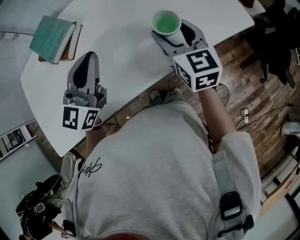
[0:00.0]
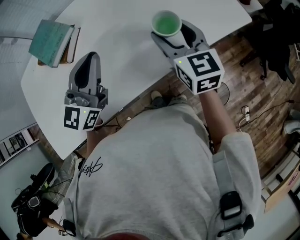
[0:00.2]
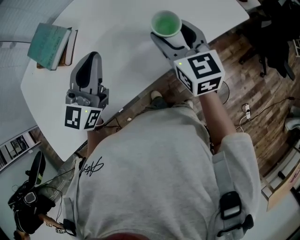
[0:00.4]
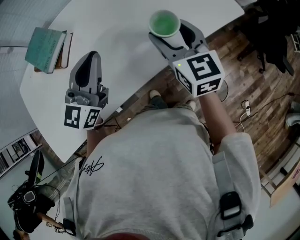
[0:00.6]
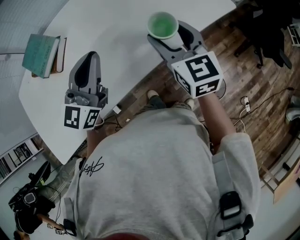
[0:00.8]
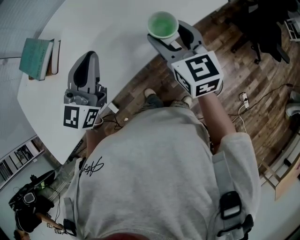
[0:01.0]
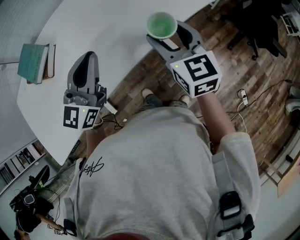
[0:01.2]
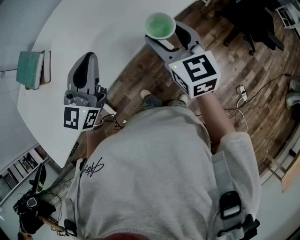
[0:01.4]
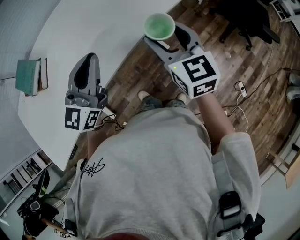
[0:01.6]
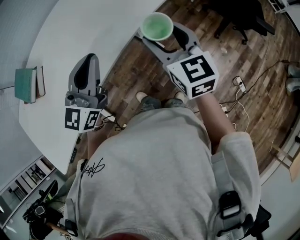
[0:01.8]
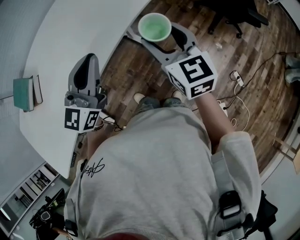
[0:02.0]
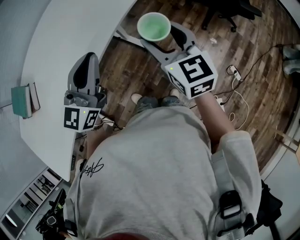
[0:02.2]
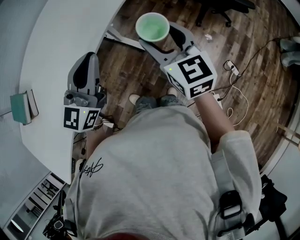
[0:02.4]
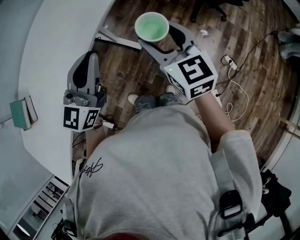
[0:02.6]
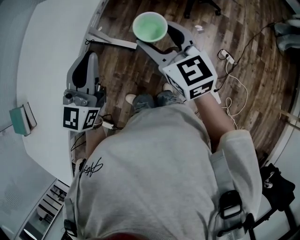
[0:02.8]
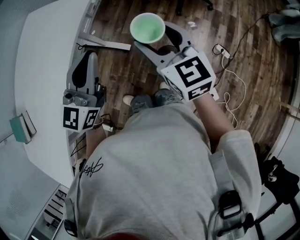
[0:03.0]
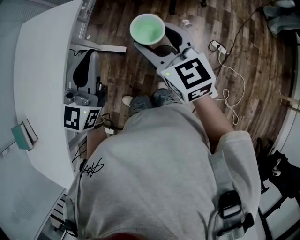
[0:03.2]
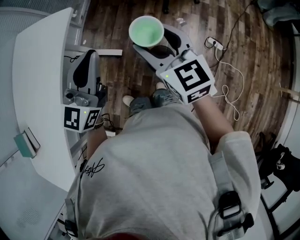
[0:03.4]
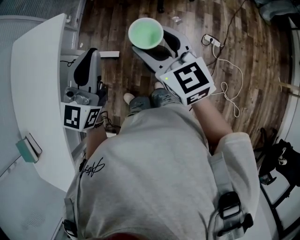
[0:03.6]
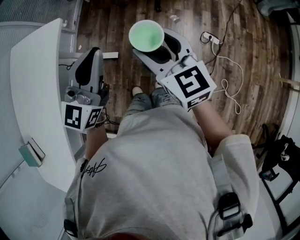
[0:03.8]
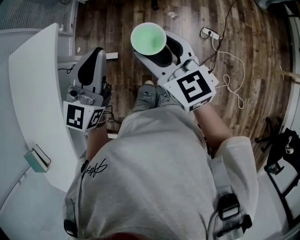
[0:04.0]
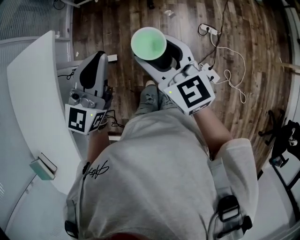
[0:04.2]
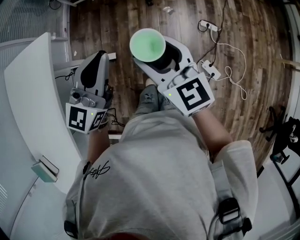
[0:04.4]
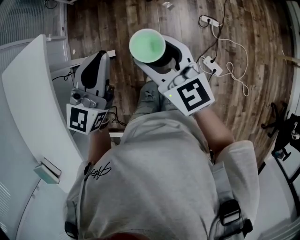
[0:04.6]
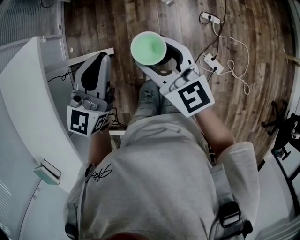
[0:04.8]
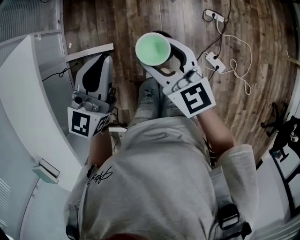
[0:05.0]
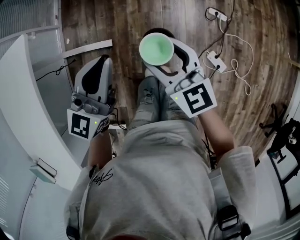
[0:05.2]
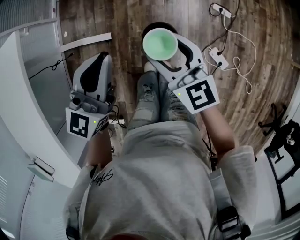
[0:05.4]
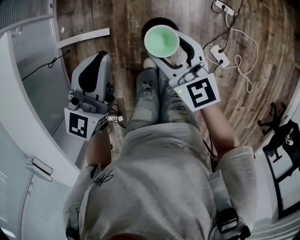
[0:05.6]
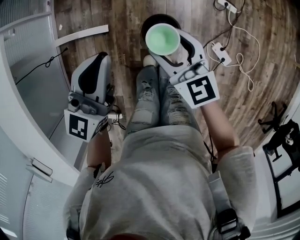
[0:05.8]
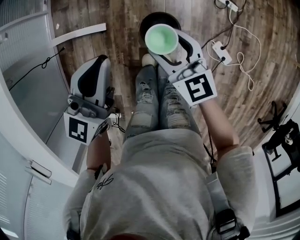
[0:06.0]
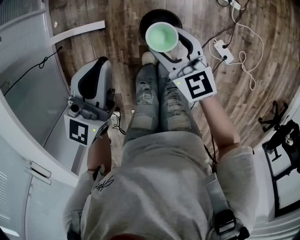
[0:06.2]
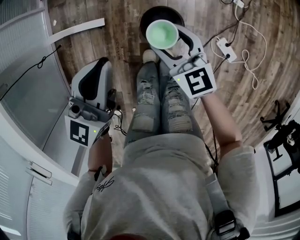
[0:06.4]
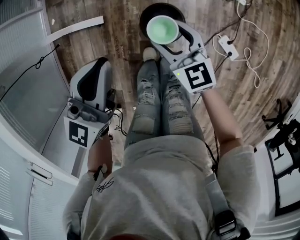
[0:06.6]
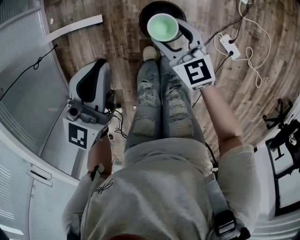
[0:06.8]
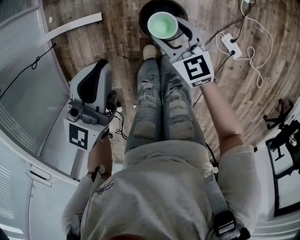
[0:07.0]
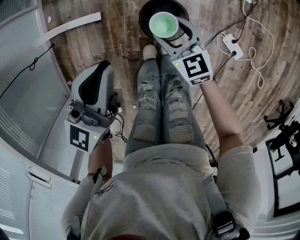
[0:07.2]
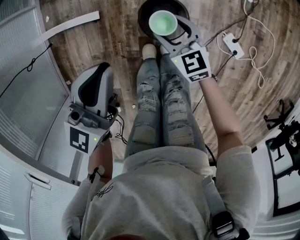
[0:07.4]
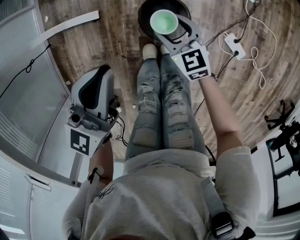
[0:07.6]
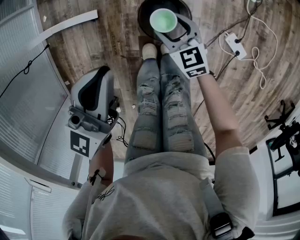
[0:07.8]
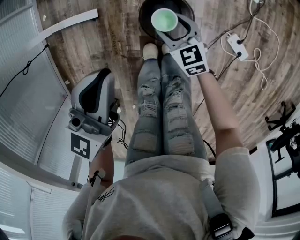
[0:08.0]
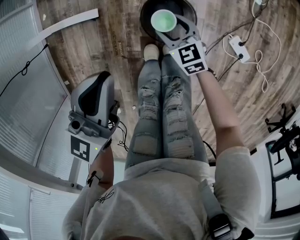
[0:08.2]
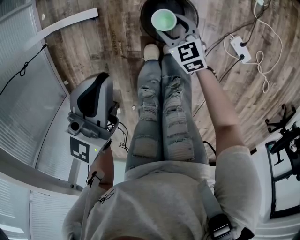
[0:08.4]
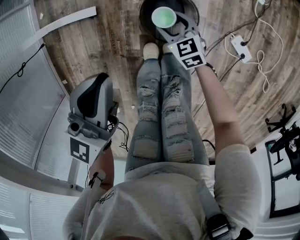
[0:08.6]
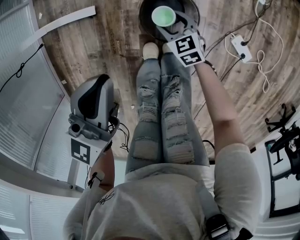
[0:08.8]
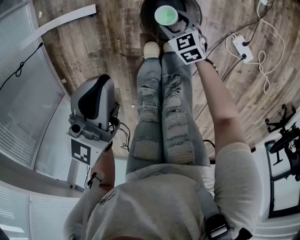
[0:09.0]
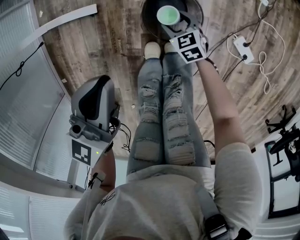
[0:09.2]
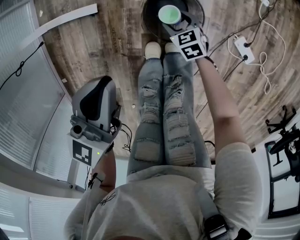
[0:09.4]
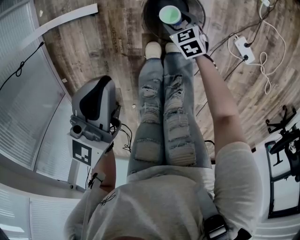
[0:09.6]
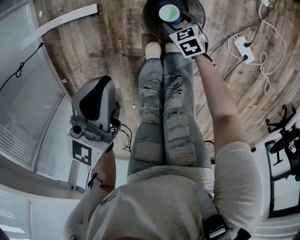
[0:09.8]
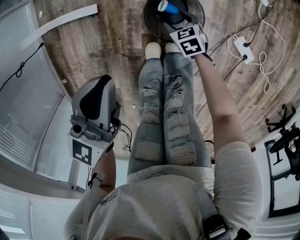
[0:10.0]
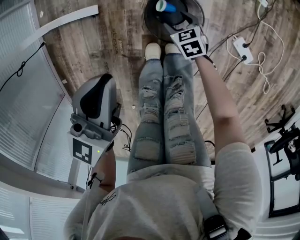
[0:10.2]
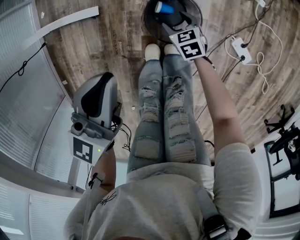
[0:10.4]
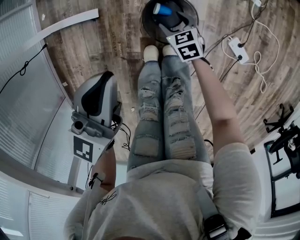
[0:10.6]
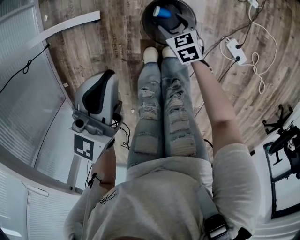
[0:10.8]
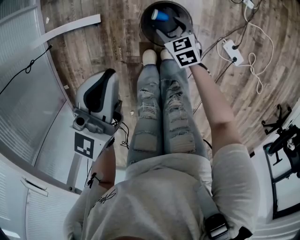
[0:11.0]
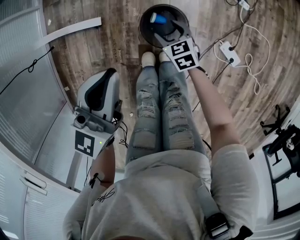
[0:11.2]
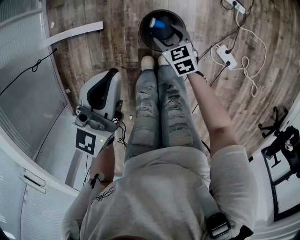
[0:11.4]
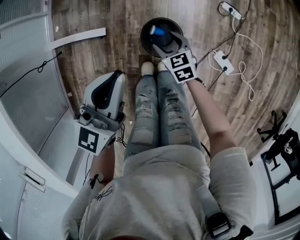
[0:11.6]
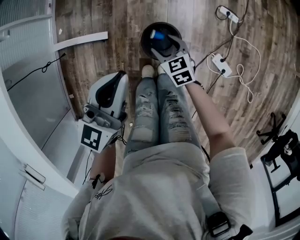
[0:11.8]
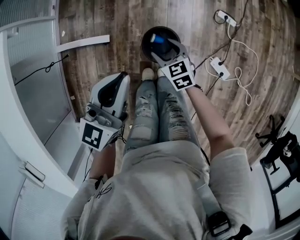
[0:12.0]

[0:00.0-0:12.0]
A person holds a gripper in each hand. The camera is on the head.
0.0 to 1.6 s: Both grippers travel together to the right, roughly 20 cm.
1.6 to 3.0 s: The grippers both shift to the right by about 25 cm. The left gripper changes its angle by about 20 degrees.
3.0 to 4.4 s: The right gripper heads to the right and downward, covering approximately 10 cm. The left gripper goes roughly 15 cm to the right, forward and downward, and swivels approximately 30 degrees.
4.4 to 6.0 s: The right gripper goes approximately 25 cm downward. The left gripper moves downward, roughly 20 cm.
6.0 to 7.6 s: The right gripper is displaced downward by roughly 25 cm, while the left gripper goes approximately 10 cm downward.
7.6 to 9.0 s: The left gripper goes some 5 cm downward. Meanwhile the right gripper shifts roughly 15 cm downward.
9.0 to 10.4 s: The grippers make only small movements.
10.4 to 12.0 s: The left gripper moves upward, some 15 cm, while the right gripper heads upward, covering some 25 cm.

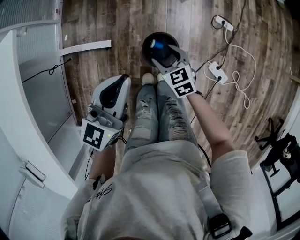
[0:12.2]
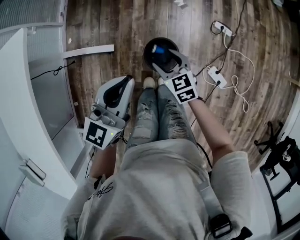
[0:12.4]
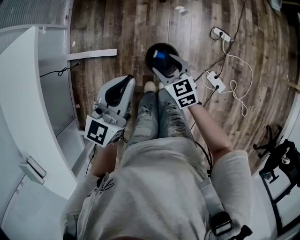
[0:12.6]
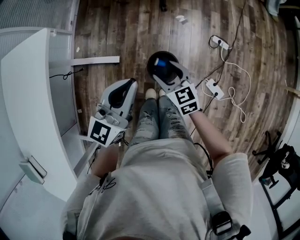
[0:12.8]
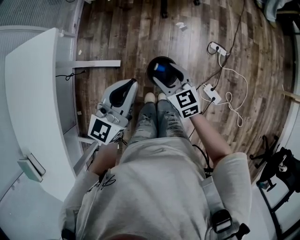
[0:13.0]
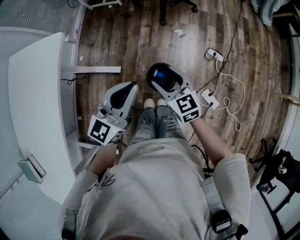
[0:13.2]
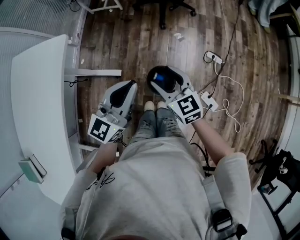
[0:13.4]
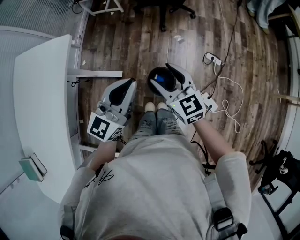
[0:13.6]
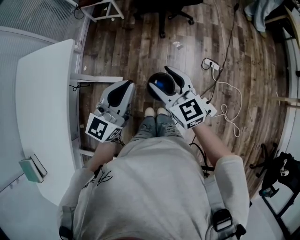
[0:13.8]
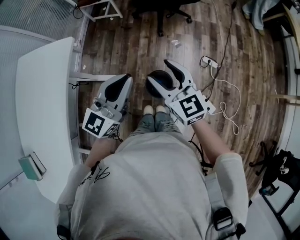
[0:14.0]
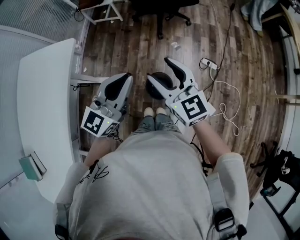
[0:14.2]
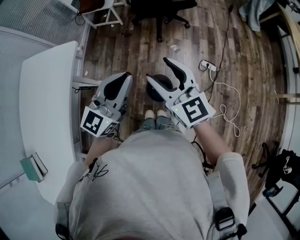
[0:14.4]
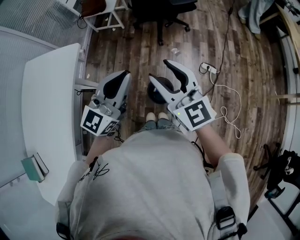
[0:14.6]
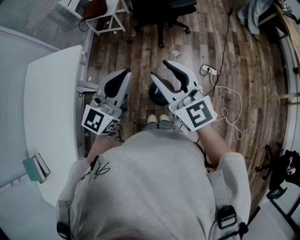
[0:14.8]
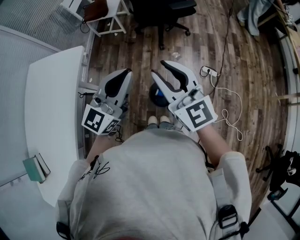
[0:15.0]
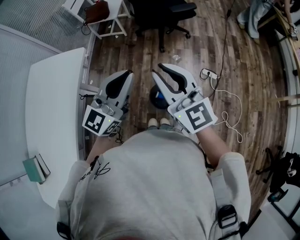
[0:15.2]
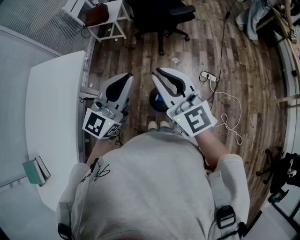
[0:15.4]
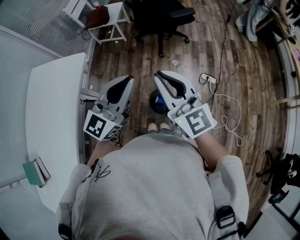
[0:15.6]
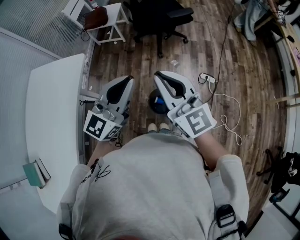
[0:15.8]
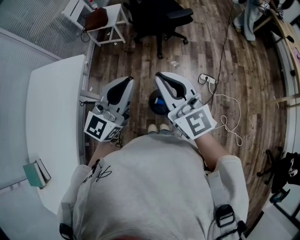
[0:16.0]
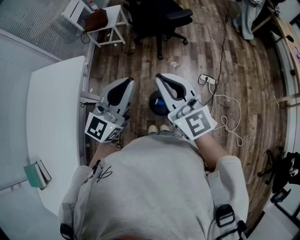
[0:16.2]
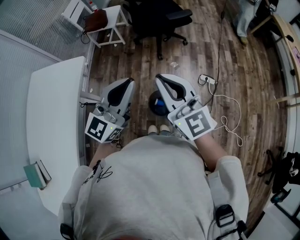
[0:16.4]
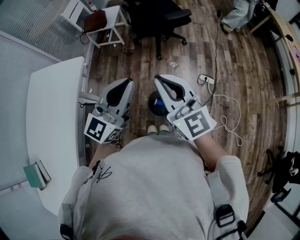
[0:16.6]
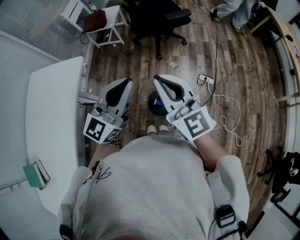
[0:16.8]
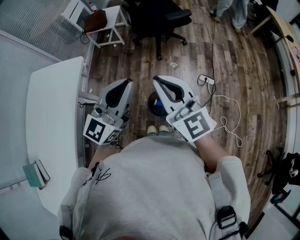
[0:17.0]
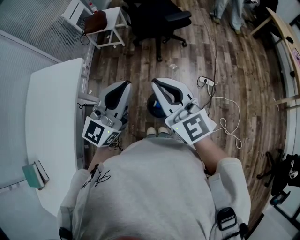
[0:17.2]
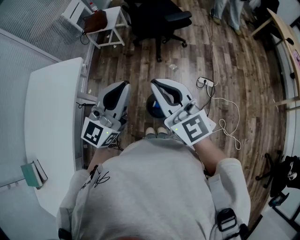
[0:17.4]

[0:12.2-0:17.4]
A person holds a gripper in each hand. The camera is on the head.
12.2 to 14.0 s: The right gripper shifts some 35 cm upward, and angles its fingers upward, by roughly 30 degrees, while the left gripper travels upward by some 20 cm.
14.0 to 15.6 s: The right gripper heads upward, covering some 15 cm, and closes, while the left gripper is displaced upward by approximately 10 cm.
15.6 to 17.4 s: There are only small adjustments of the grippers.

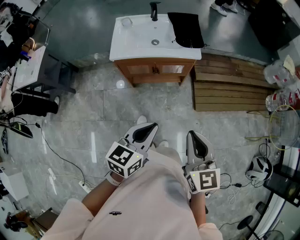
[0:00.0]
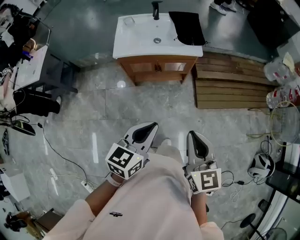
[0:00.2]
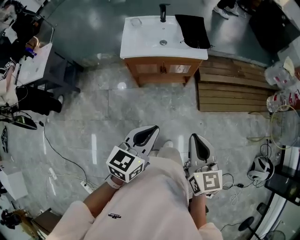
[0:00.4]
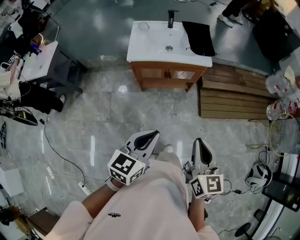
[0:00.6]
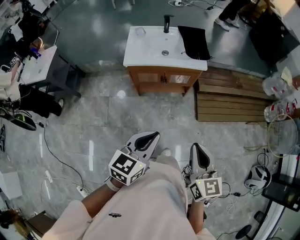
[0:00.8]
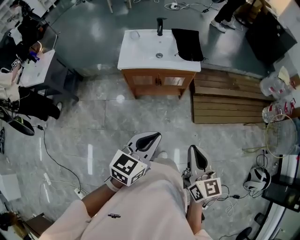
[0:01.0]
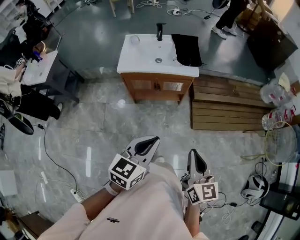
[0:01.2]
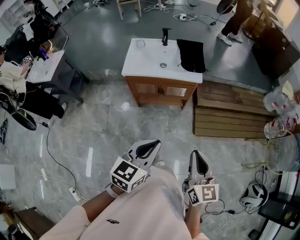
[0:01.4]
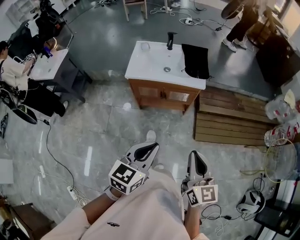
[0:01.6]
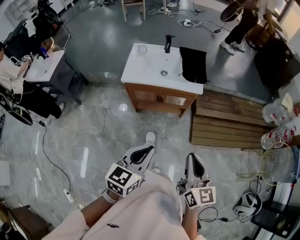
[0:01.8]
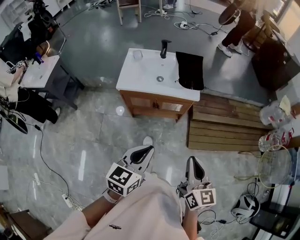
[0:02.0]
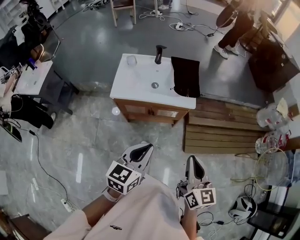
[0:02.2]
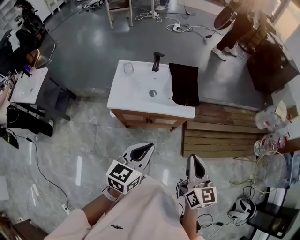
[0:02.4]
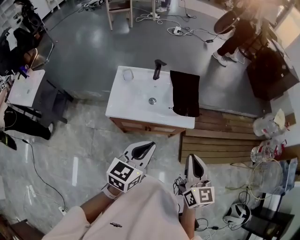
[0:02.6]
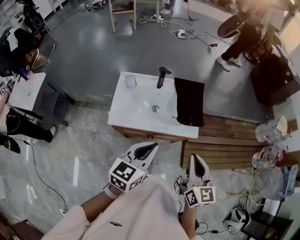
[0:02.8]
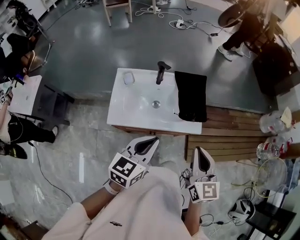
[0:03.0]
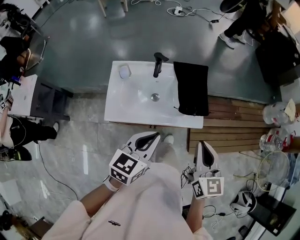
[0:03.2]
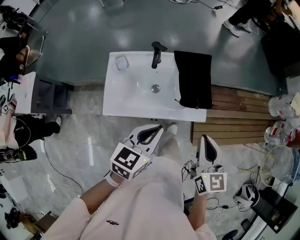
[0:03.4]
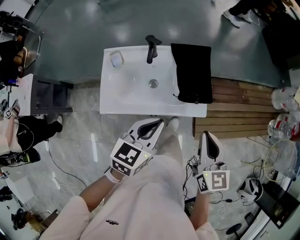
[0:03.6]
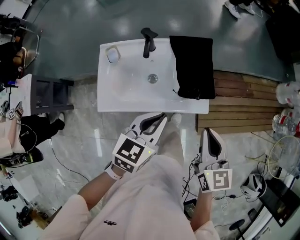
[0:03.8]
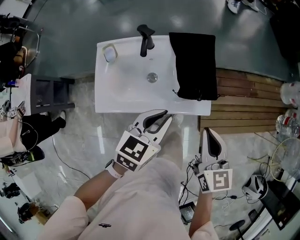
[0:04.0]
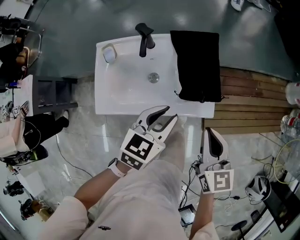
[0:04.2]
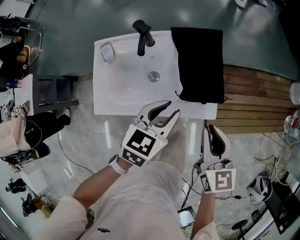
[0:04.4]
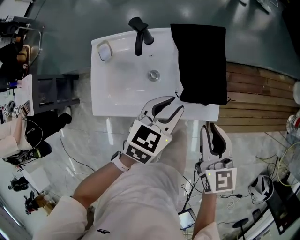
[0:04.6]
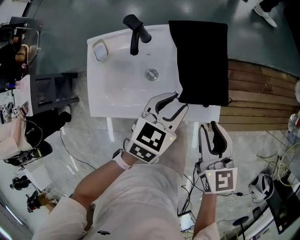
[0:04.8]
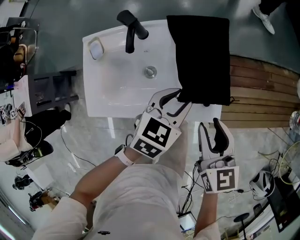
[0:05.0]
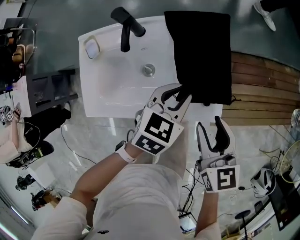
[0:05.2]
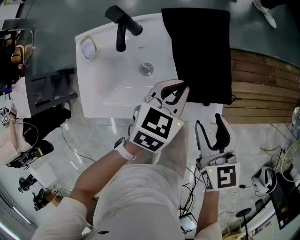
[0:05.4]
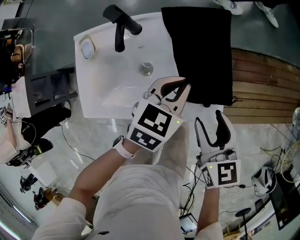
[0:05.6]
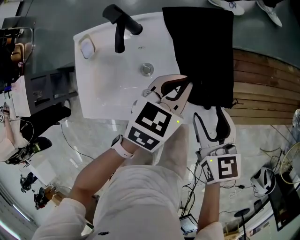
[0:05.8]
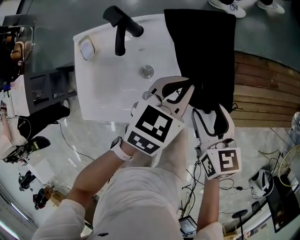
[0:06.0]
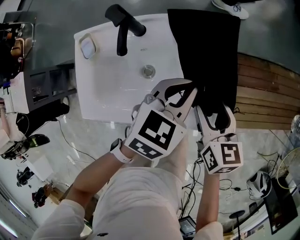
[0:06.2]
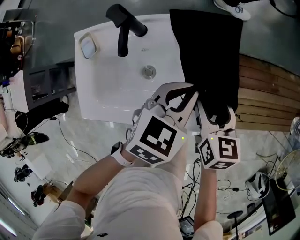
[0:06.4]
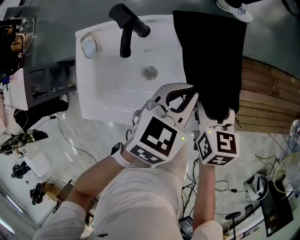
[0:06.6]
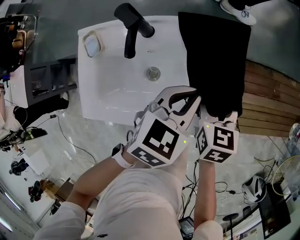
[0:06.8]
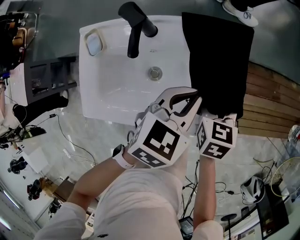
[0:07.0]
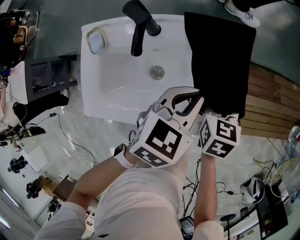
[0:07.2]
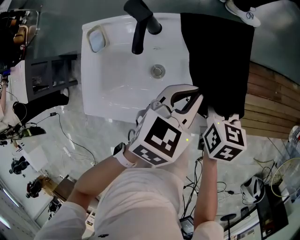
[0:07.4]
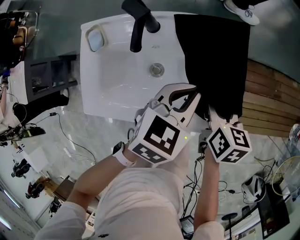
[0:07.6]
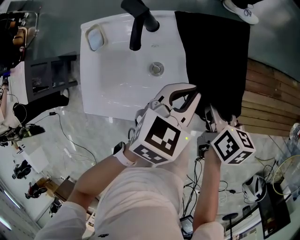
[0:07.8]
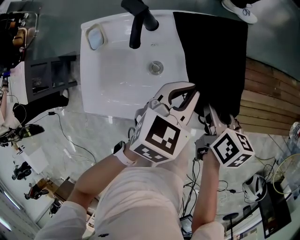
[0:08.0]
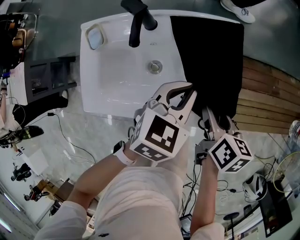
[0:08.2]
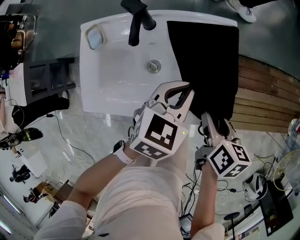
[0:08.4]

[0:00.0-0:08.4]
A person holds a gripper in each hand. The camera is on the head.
0.0 to 1.4 s: The left gripper goes roughly 5 cm backward. The right gripper moves to the right, roughly 5 cm.
1.4 to 2.8 s: The grippers both shift forward by approximately 35 cm.
2.8 to 4.2 s: The grippers both shift forward and downward by some 20 cm. The left gripper opens.
4.2 to 5.6 s: The right gripper moves downward and forward, about 15 cm, and opens. The left gripper shifts roughly 15 cm forward and downward, and closes up.
5.6 to 7.0 s: The right gripper moves downward and forward, roughly 15 cm.
7.0 to 8.4 s: The right gripper travels backward by some 10 cm, swivels roughly 30 degrees, and closes.
